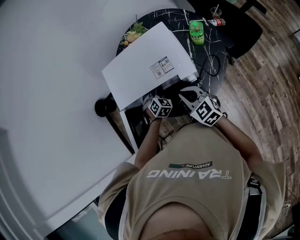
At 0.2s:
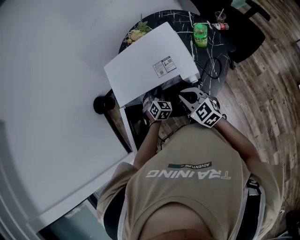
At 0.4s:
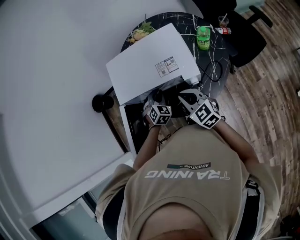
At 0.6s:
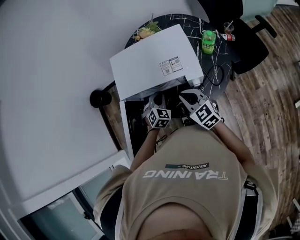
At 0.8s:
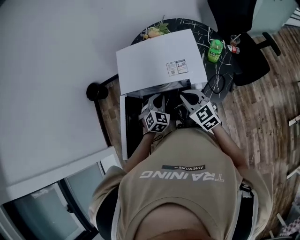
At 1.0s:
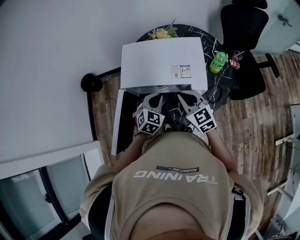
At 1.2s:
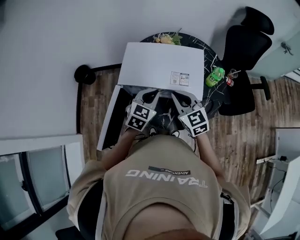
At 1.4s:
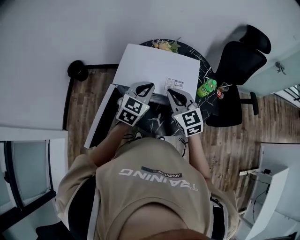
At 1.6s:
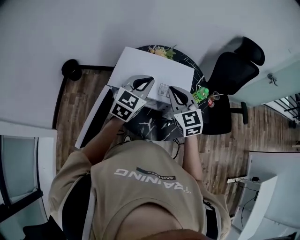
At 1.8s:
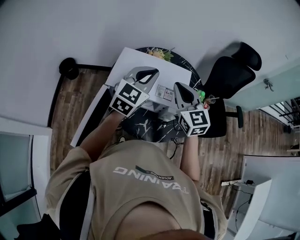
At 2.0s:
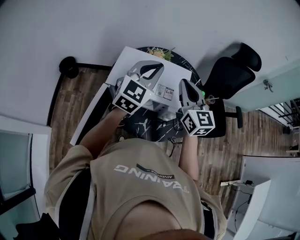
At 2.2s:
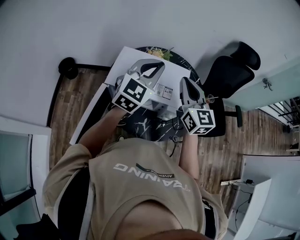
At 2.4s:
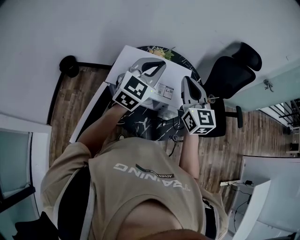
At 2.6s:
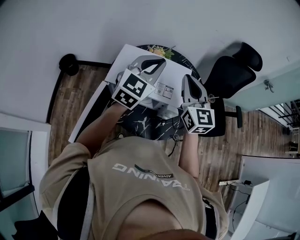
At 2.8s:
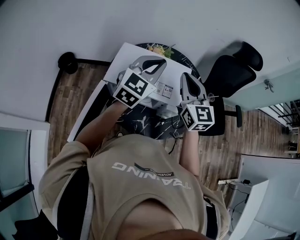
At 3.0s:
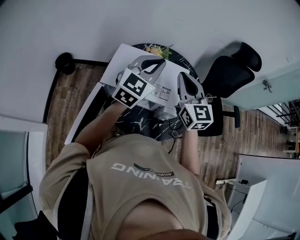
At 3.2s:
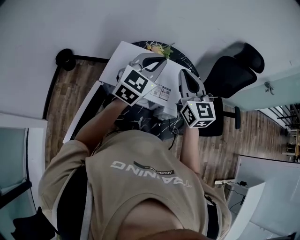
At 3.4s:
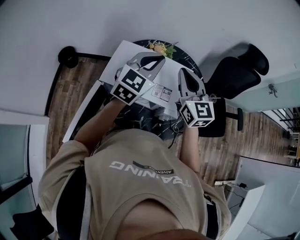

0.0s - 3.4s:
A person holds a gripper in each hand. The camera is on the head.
0.0s - 1.6s: The right gripper heads upward and forward, covering approximately 20 cm. Meanwhile the left gripper is displaced upward by about 30 cm, and tips its fingers upward by approximately 30 degrees.
1.6s - 3.4s: Both grippers travel together forward and upward, about 10 cm.

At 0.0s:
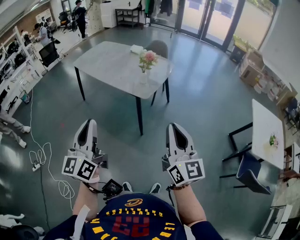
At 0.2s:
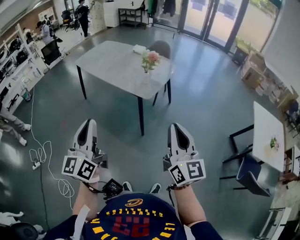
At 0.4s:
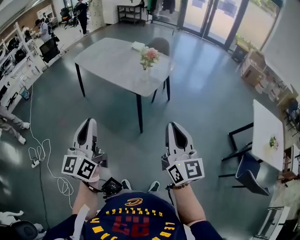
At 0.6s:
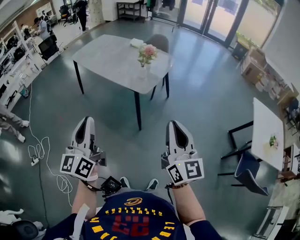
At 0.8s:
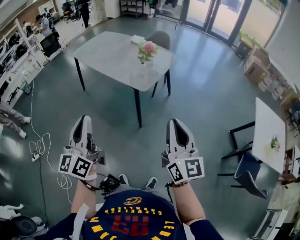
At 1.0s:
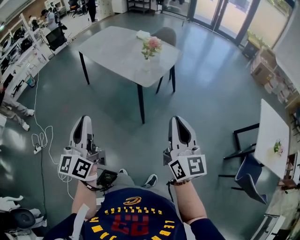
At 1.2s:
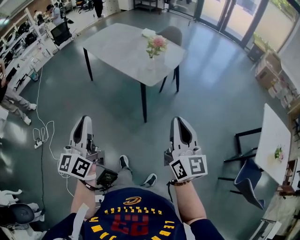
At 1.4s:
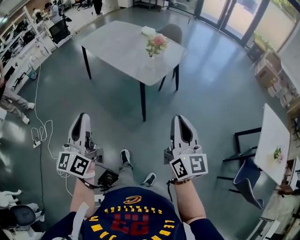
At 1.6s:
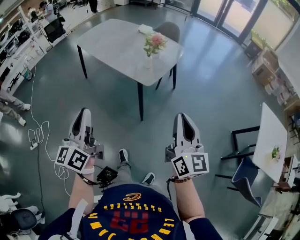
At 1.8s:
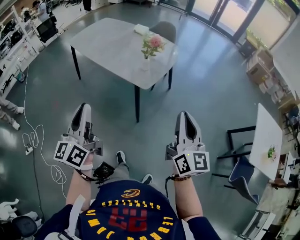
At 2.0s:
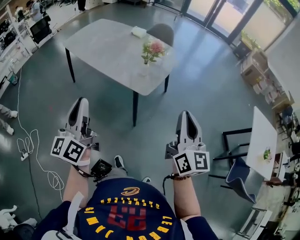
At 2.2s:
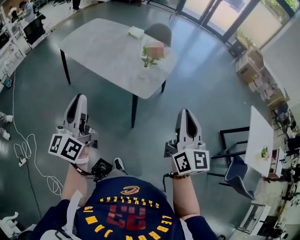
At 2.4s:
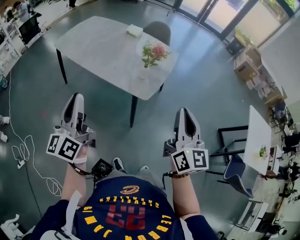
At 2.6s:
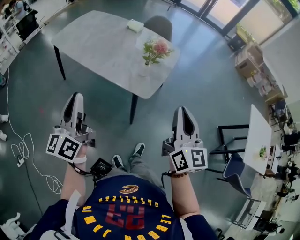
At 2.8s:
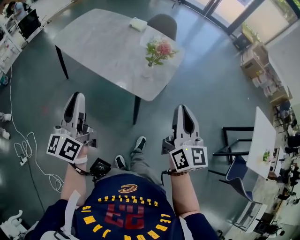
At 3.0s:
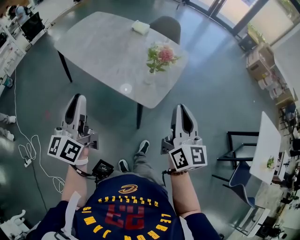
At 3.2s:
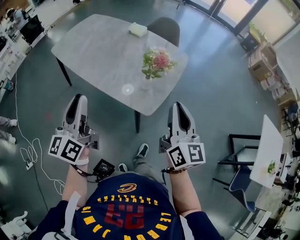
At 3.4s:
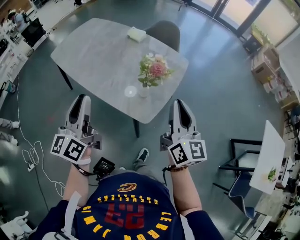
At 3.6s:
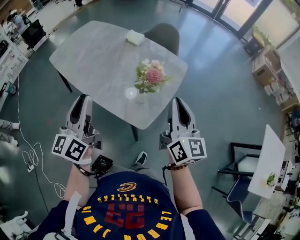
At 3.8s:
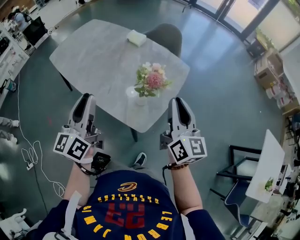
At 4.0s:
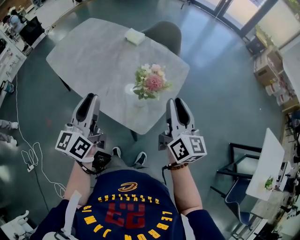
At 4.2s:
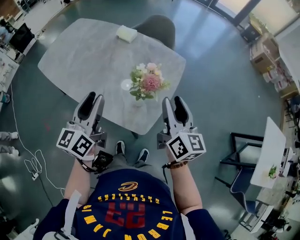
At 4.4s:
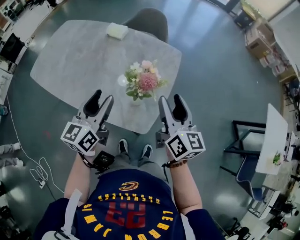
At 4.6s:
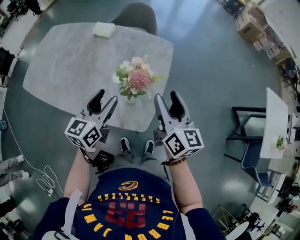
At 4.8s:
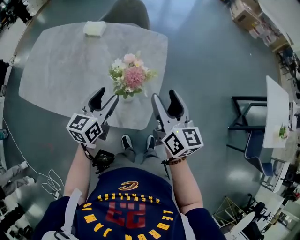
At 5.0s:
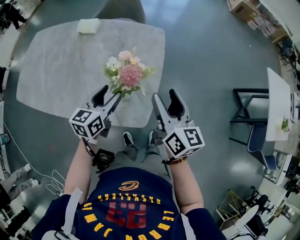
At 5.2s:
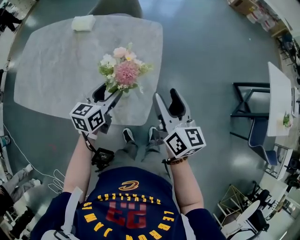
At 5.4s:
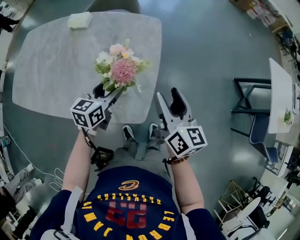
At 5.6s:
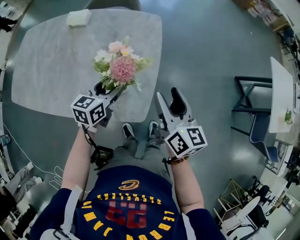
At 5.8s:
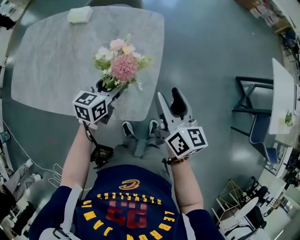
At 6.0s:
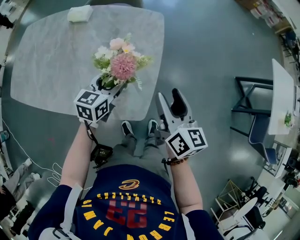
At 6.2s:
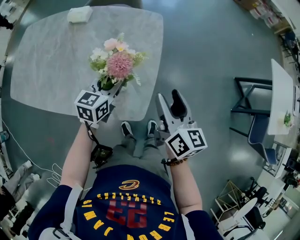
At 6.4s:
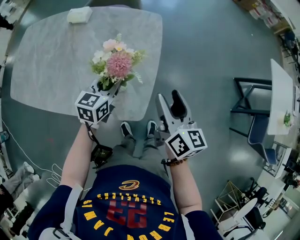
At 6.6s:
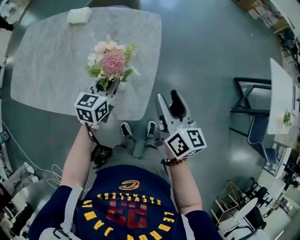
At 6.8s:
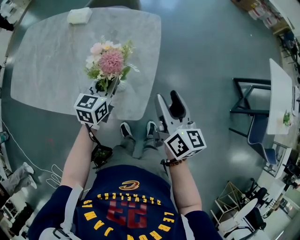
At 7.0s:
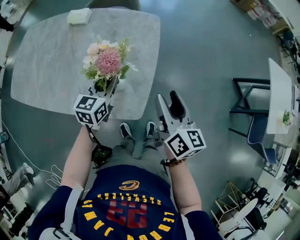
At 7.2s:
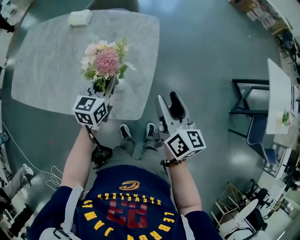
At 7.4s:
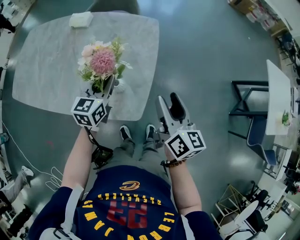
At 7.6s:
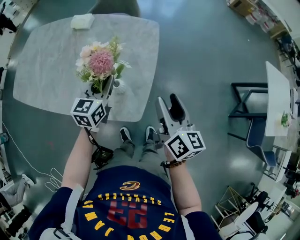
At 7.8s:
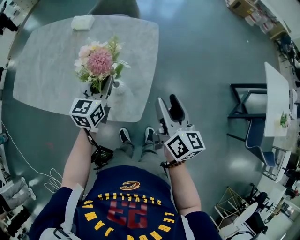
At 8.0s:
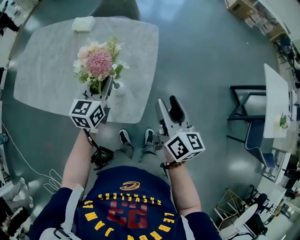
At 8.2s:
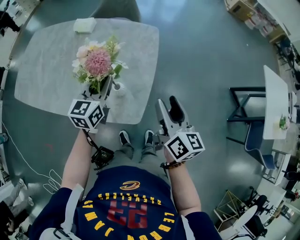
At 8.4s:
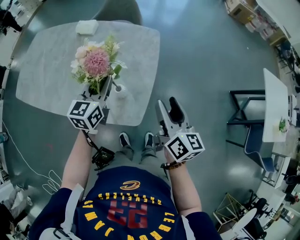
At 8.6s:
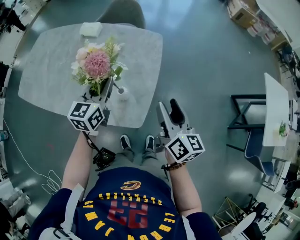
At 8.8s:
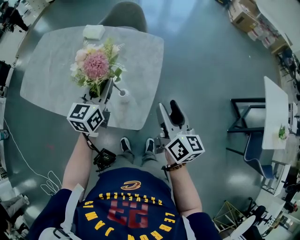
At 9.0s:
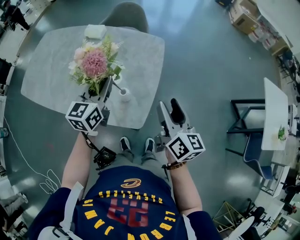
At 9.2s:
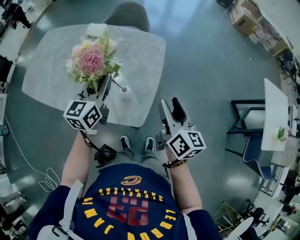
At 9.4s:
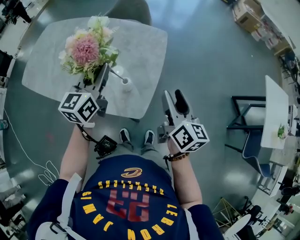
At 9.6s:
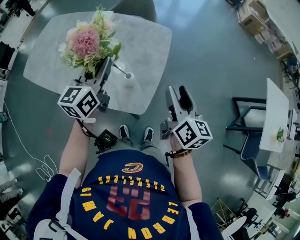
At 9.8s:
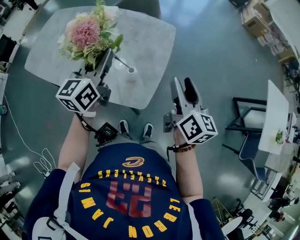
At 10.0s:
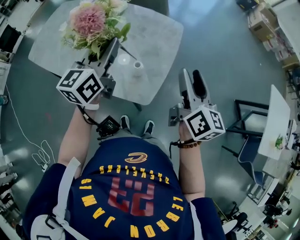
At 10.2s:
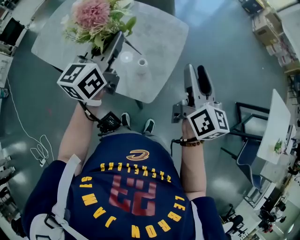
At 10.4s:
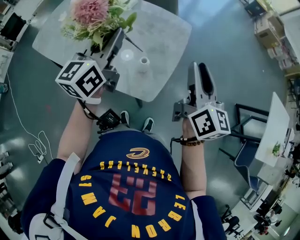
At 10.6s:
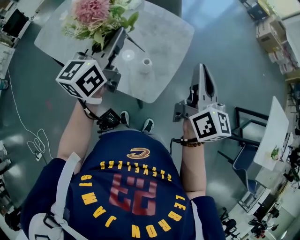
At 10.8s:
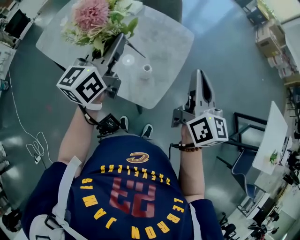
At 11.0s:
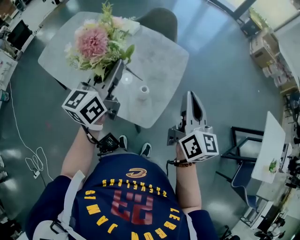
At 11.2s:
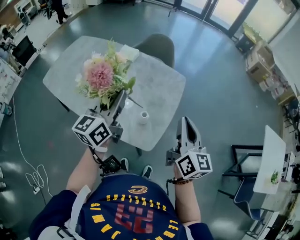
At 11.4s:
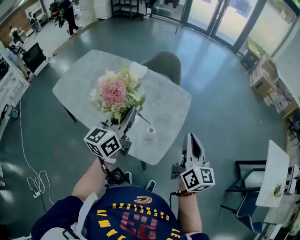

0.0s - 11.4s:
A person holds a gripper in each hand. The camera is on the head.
0.0s - 1.4s: The right gripper goes roughly 10 cm forward and to the right.
1.4s - 2.8s: The left gripper goes roughly 30 cm forward; the right gripper heads forward and to the left, covering some 25 cm.
2.8s - 4.2s: The left gripper heads forward and to the right, covering roughly 30 cm, and opens; the right gripper travels forward by about 30 cm, and opens up.
4.2s - 5.6s: The right gripper goes about 10 cm downward, swivels roughly 20 degrees, and opens up; the left gripper shifts some 20 cm downward, turns by some 50 degrees, and opens up.
5.6s - 7.2s: The left gripper closes.
7.2s - 8.6s: The left gripper is displaced upward by roughly 10 cm.
8.6s - 10.0s: The right gripper heads upward, covering some 5 cm. Meanwhile the left gripper travels upward by about 10 cm.
10.0s - 11.4s: The right gripper closes.

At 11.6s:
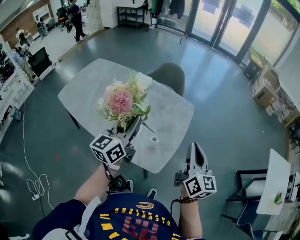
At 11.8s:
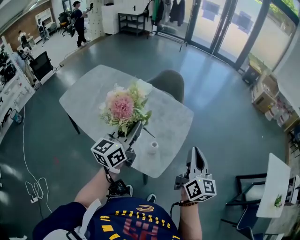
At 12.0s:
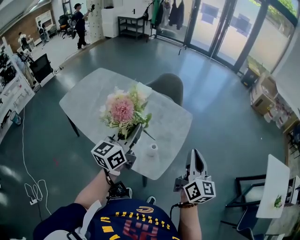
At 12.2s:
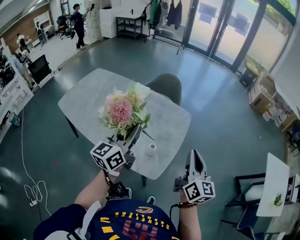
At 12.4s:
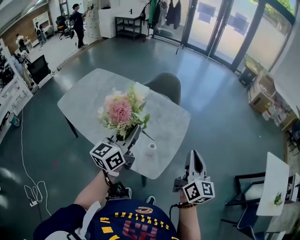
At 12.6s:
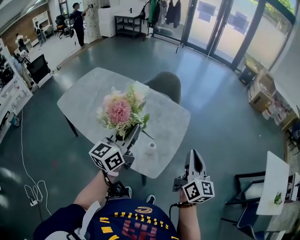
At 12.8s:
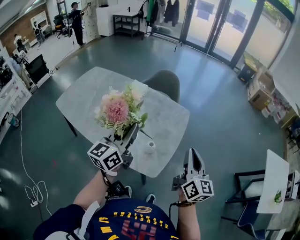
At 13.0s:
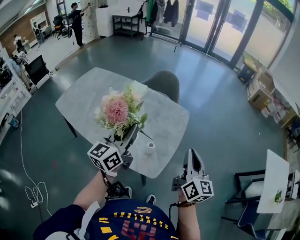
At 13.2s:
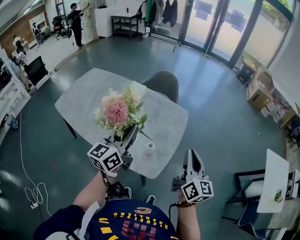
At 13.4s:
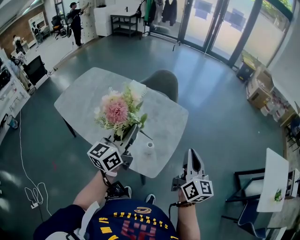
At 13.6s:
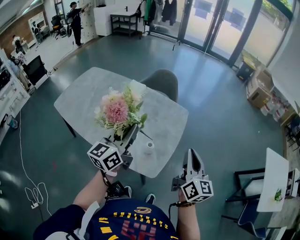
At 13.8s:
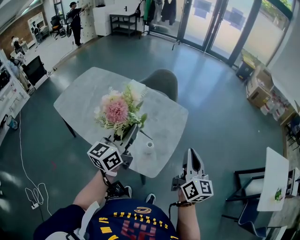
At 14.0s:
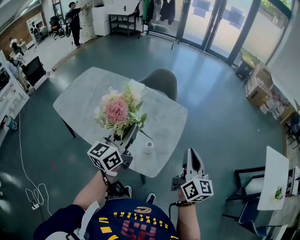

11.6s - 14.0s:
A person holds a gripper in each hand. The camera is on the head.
11.6s - 12.8s: The grippers move only a little.
12.8s - 14.0s: Neither gripper changes place.

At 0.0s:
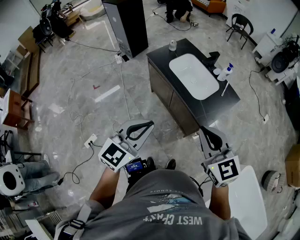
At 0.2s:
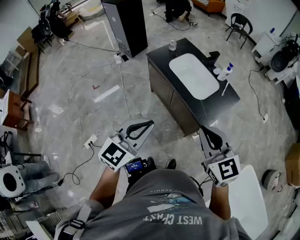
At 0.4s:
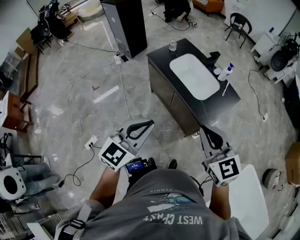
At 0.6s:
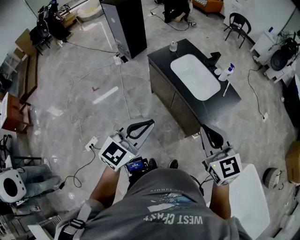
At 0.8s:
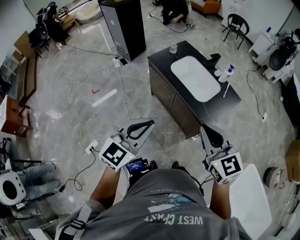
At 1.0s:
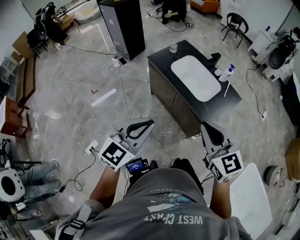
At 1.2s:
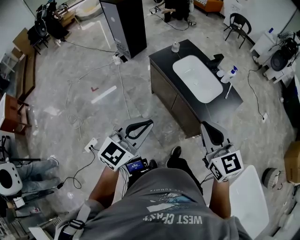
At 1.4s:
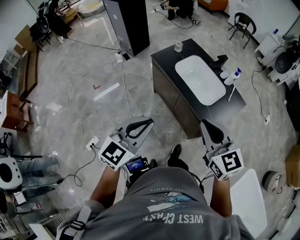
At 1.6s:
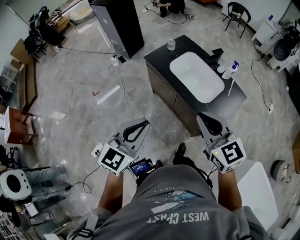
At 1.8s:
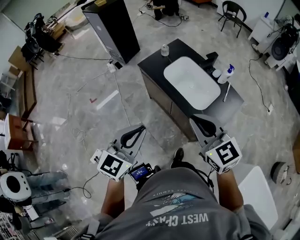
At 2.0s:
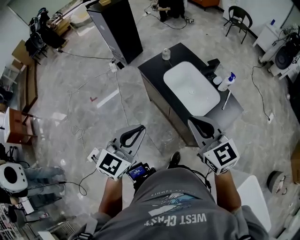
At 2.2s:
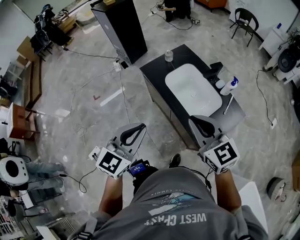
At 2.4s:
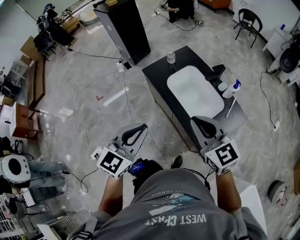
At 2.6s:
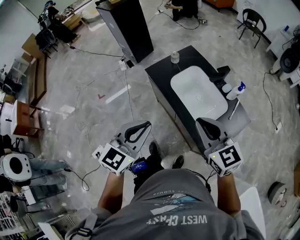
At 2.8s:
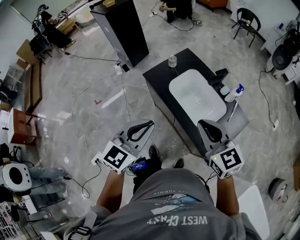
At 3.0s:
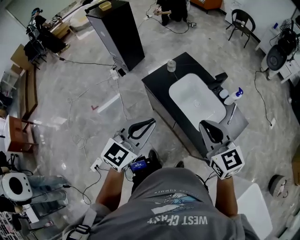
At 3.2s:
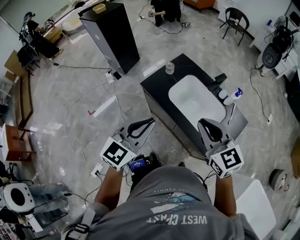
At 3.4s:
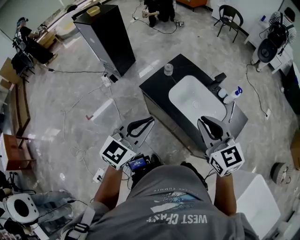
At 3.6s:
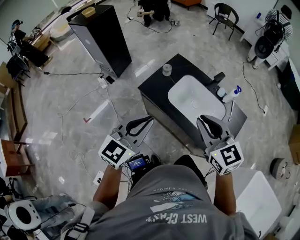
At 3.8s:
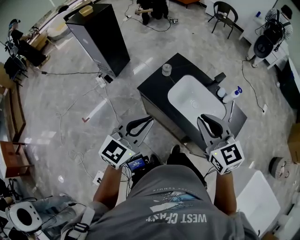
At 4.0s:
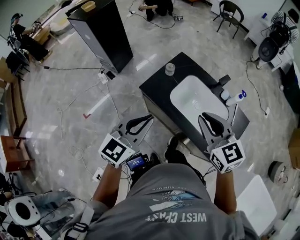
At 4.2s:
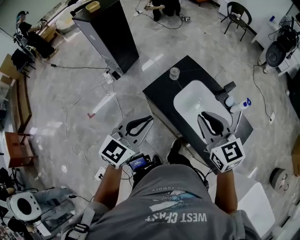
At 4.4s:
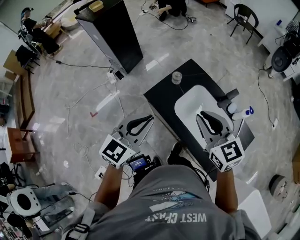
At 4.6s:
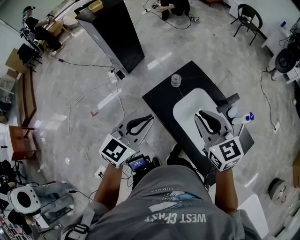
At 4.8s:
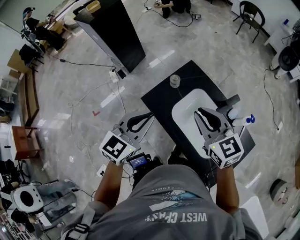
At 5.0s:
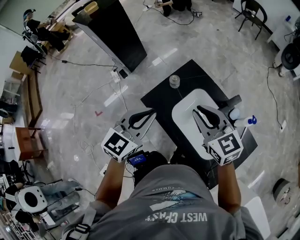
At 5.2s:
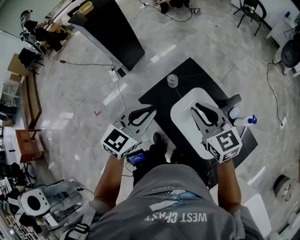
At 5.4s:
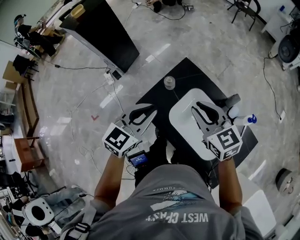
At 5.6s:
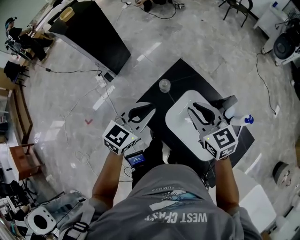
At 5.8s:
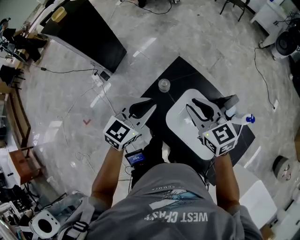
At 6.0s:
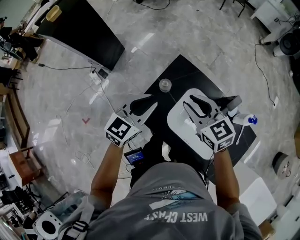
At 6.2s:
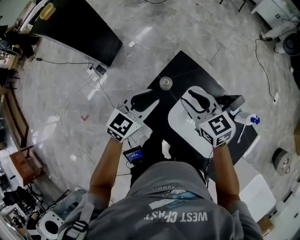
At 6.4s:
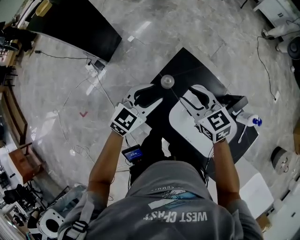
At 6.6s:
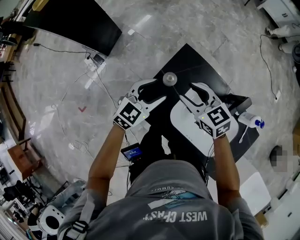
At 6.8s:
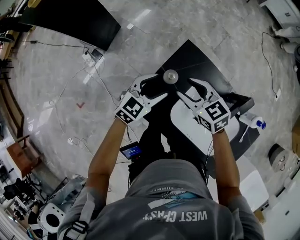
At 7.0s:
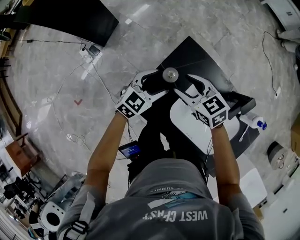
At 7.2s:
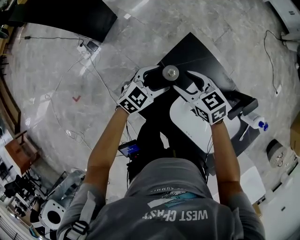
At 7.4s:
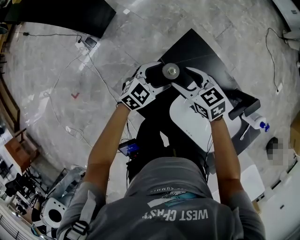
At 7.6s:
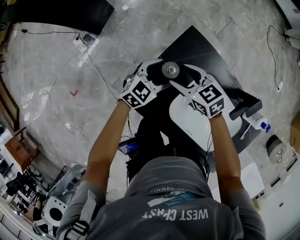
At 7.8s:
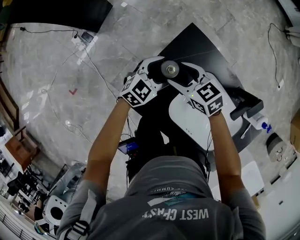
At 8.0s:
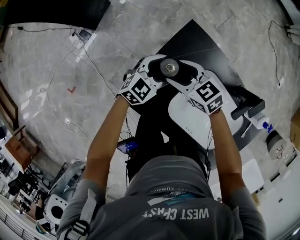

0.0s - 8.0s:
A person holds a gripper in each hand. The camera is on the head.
0.0s - 1.6s: The two grippers go about 10 cm forward and to the left.
1.6s - 3.2s: Both grippers move forward, about 20 cm.
3.2s - 4.8s: The grippers both shift forward by some 20 cm.
4.8s - 6.4s: Both grippers move forward and downward, some 25 cm. The right gripper opens up. Meanwhile the left gripper opens up.
6.4s - 8.0s: Both grippers travel together downward, approximately 15 cm. The left gripper opens its fingers; the right gripper opens.
